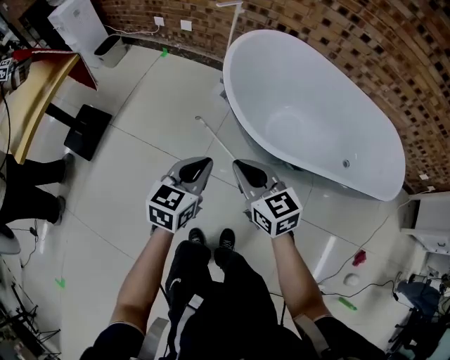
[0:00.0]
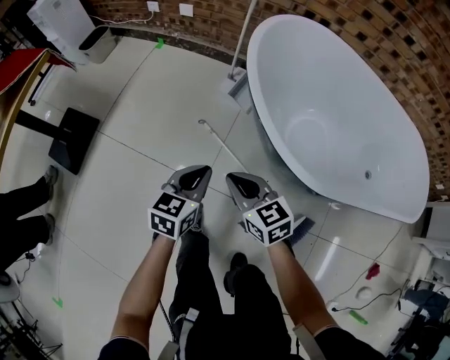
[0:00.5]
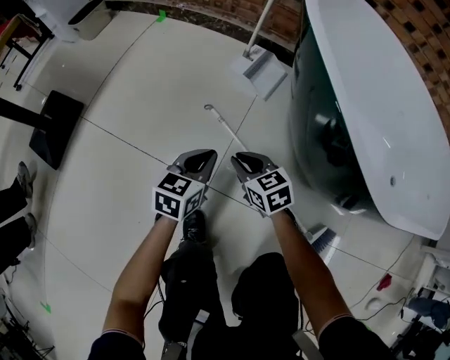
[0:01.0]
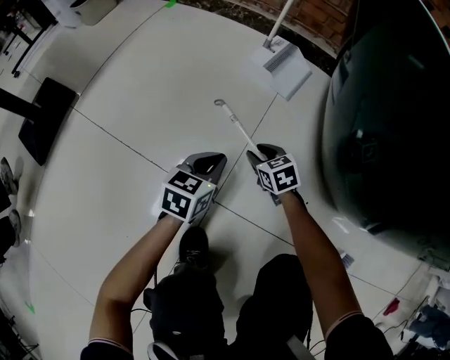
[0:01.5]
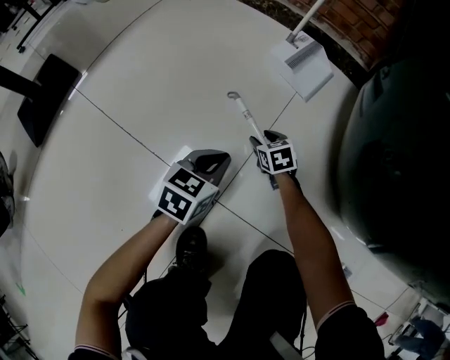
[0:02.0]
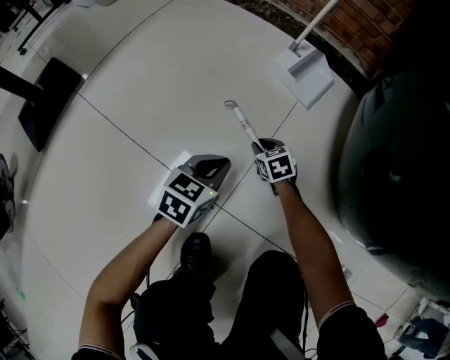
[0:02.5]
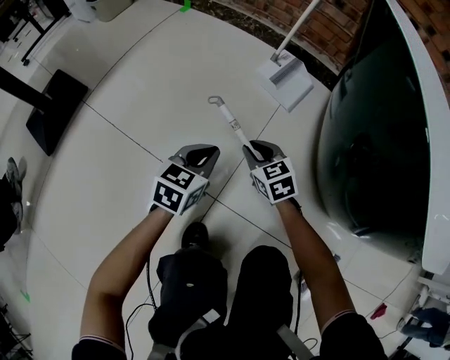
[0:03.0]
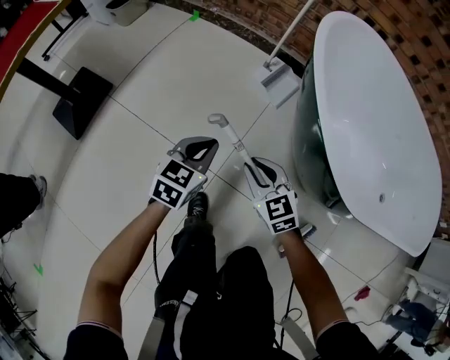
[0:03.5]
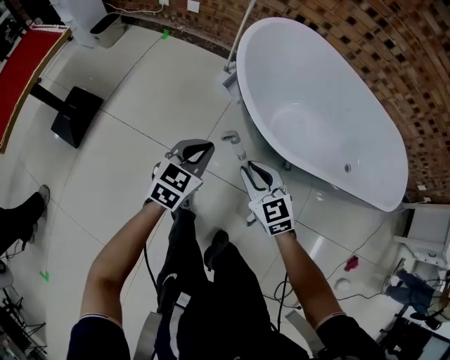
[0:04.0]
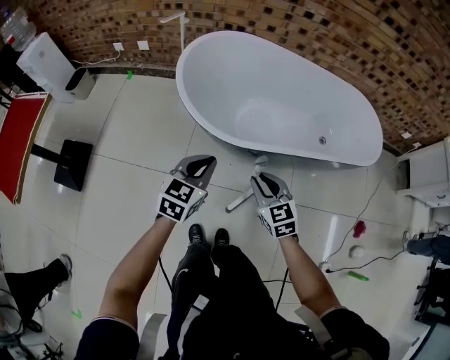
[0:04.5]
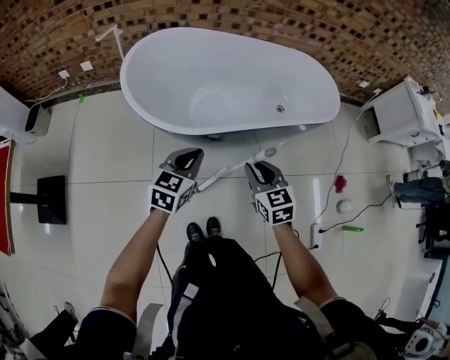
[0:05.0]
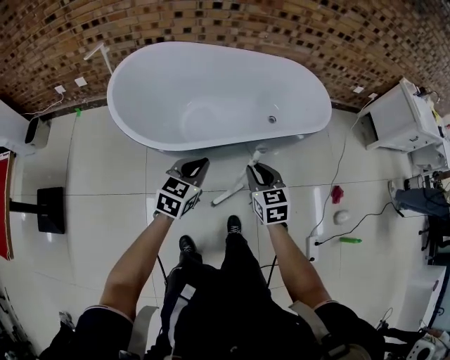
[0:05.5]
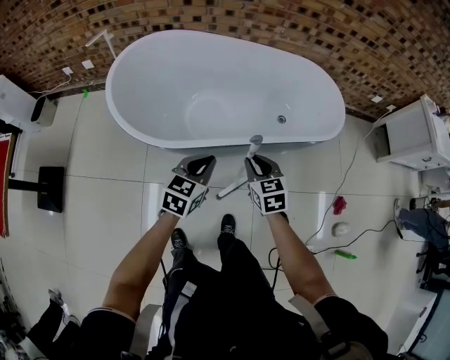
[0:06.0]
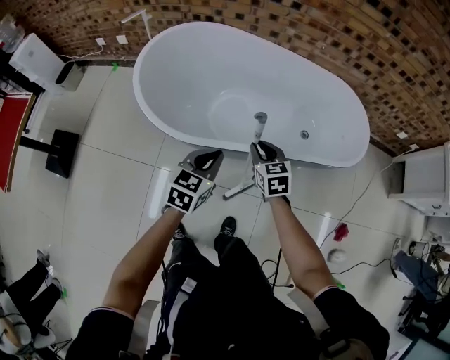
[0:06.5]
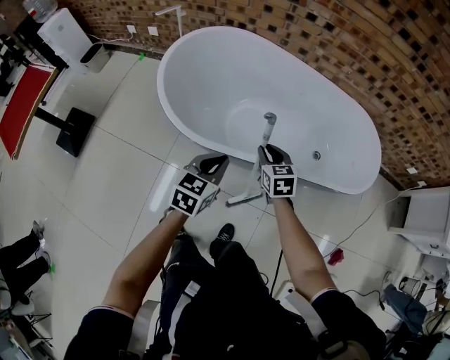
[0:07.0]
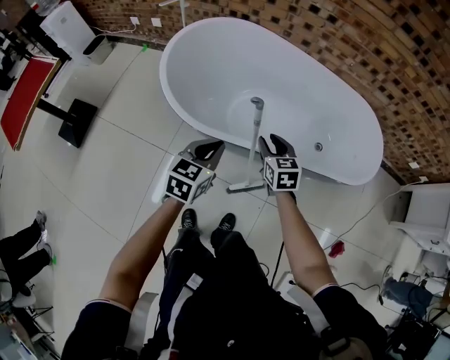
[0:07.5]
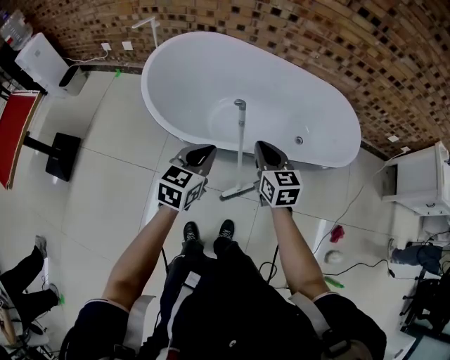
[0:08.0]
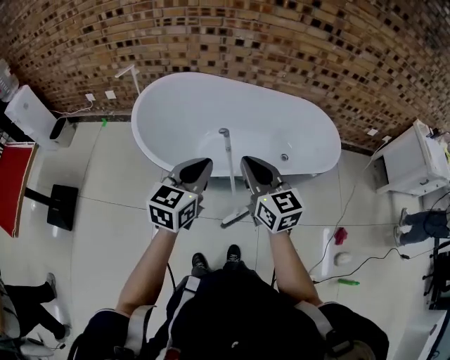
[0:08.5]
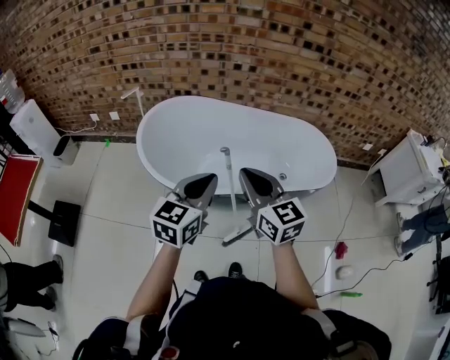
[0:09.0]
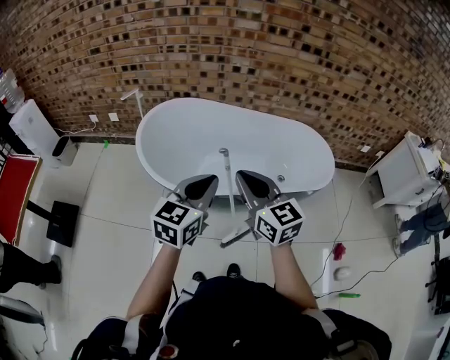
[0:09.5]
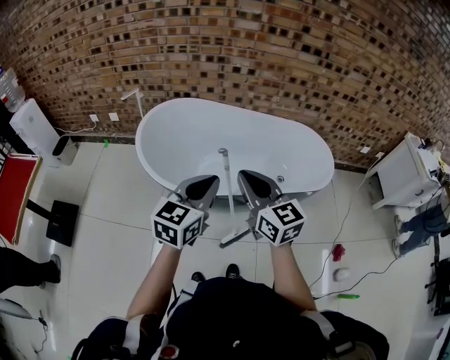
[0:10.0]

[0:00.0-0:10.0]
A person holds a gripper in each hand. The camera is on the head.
0:00.0 to 0:02.0: The left gripper moves downward, some 60 cm, while the right gripper moves downward and forward, approximately 80 cm, tips its fingers downward by some 30 degrees, and opens its fingers.
0:02.0 to 0:04.0: The left gripper heads upward, covering some 50 cm. The right gripper moves upward and backward, approximately 70 cm, swivels some 30 degrees, and closes its fingers.
0:04.0 to 0:06.0: The left gripper shifts by approximately 40 cm. The right gripper moves roughly 40 cm, and swivels roughly 40 degrees.
0:06.0 to 0:08.0: The grippers both shift upward and to the left by roughly 10 cm.
0:08.0 to 0:10.0: The grippers both shift upward by approximately 20 cm.

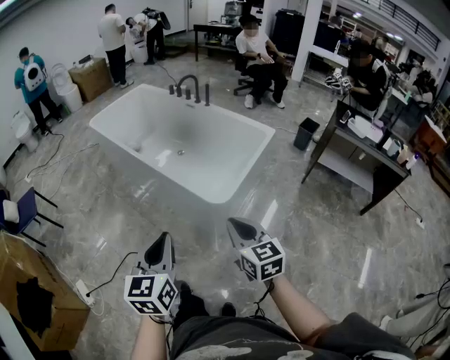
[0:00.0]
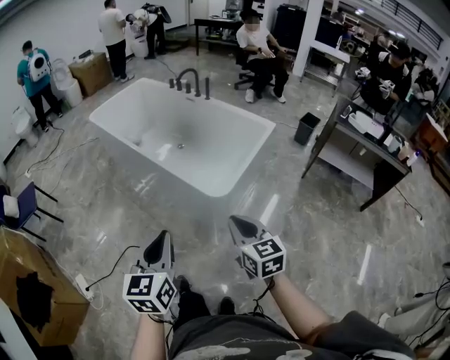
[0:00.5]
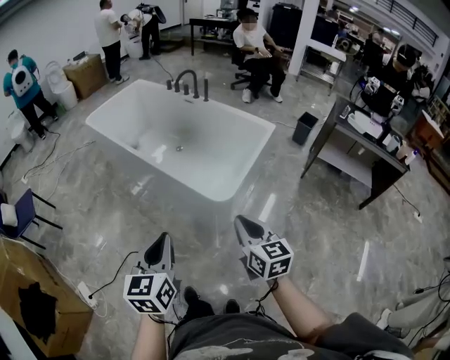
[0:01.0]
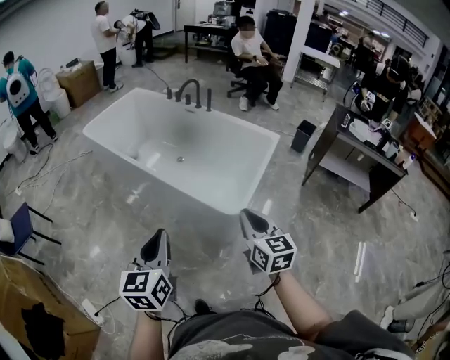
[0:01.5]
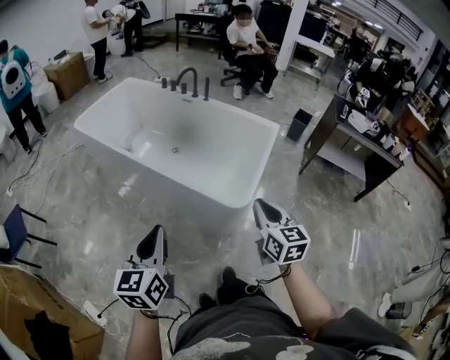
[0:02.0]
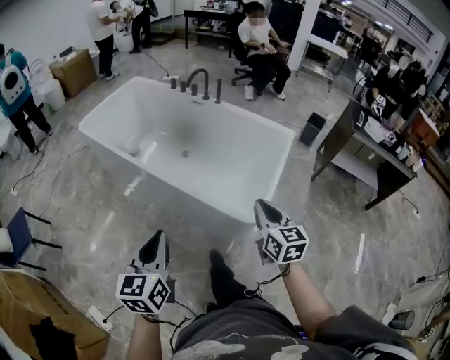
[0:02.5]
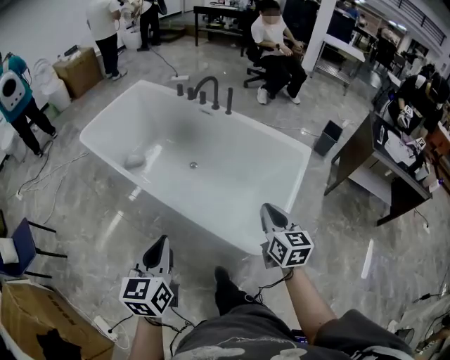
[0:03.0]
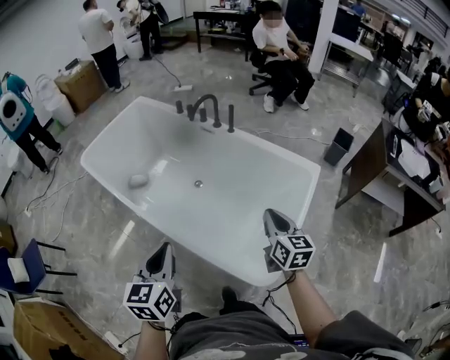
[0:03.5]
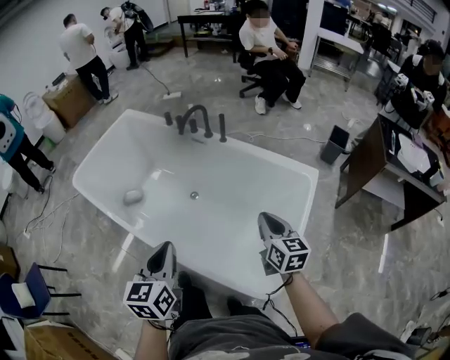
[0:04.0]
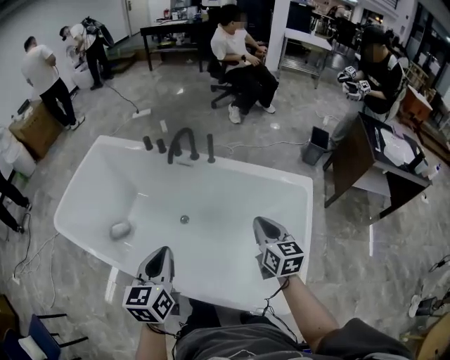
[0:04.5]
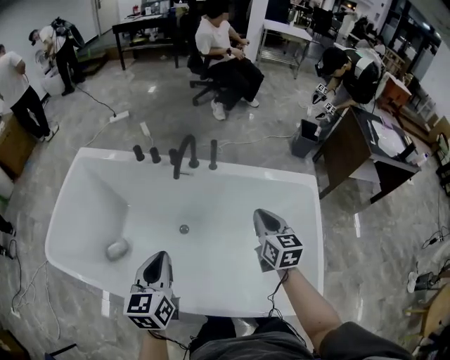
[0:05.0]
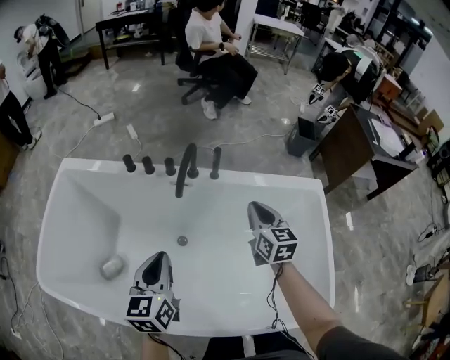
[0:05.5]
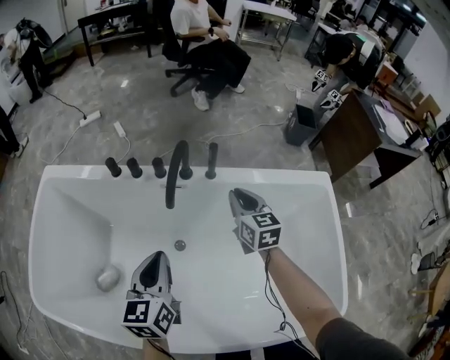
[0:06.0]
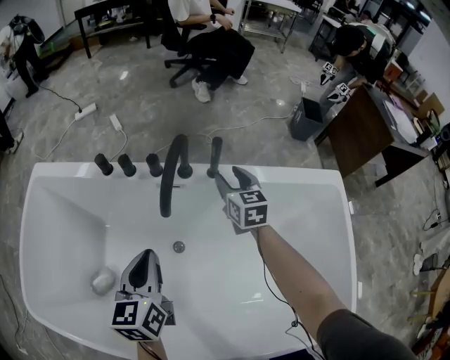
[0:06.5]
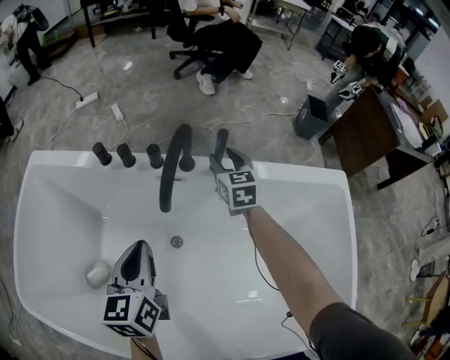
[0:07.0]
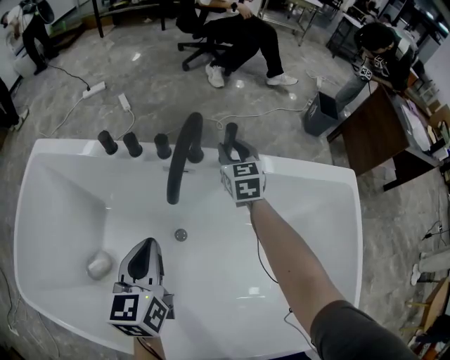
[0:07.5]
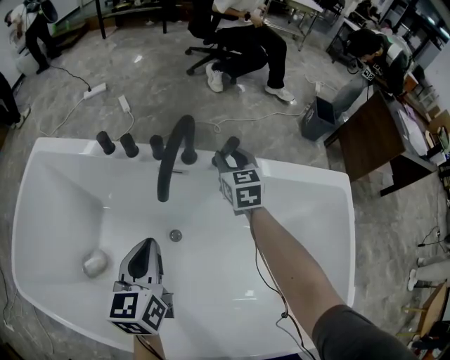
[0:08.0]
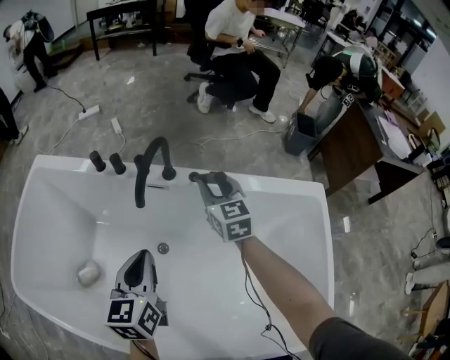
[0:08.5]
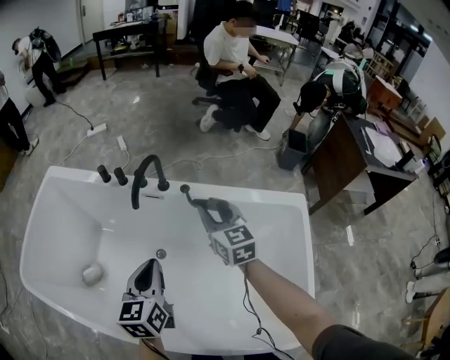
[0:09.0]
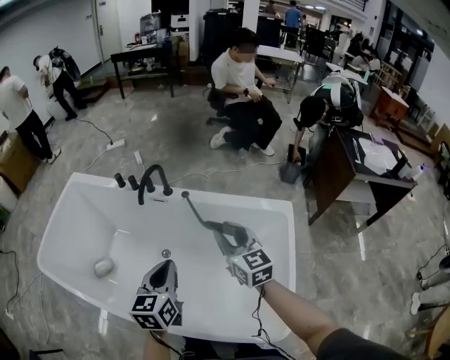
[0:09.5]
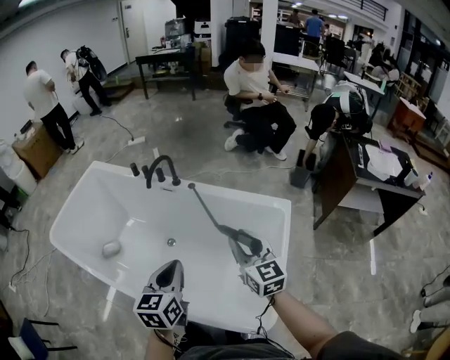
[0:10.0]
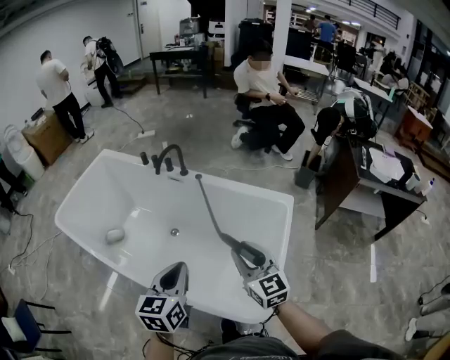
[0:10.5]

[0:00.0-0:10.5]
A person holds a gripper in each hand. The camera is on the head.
0:00.0 to 0:02.0: The left gripper is displaced to the left and forward by about 20 cm. The right gripper shifts about 15 cm forward and to the left.
0:02.0 to 0:04.0: The pair of grippers is taken forward, approximately 40 cm.
0:04.0 to 0:06.5: The two grippers travel together, forward and to the left, approximately 50 cm. The grippers both shift downward by some 20 cm. The right gripper changes its angle by about 20 degrees, and opens its fingers, while the left gripper changes its angle by approximately 20 degrees.
0:06.5 to 0:08.5: The left gripper heads to the right, covering about 5 cm; the right gripper moves upward and backward, some 10 cm.
0:08.5 to 0:10.5: Both grippers are carried backward and to the right, some 50 cm. The grippers both shift upward by roughly 20 cm. The right gripper rotates approximately 20 degrees.

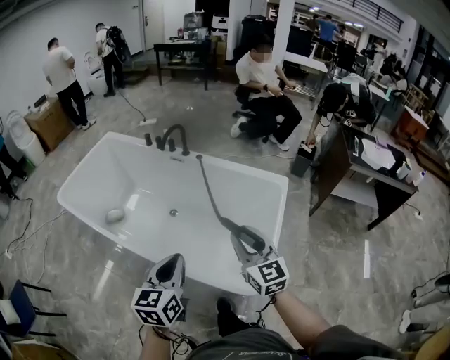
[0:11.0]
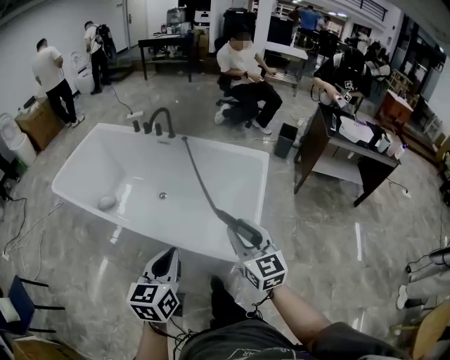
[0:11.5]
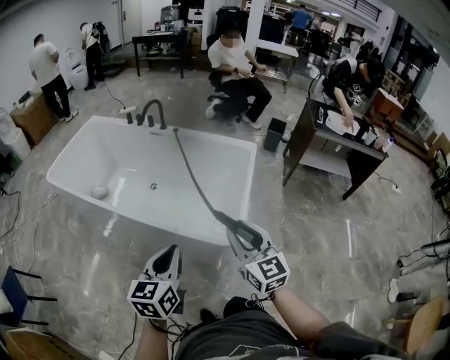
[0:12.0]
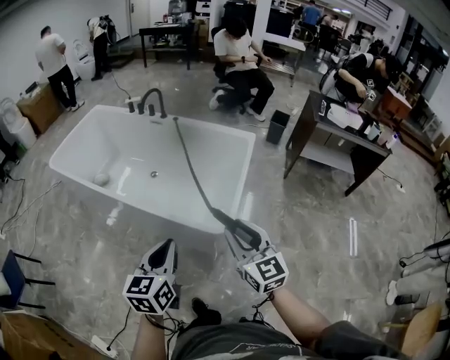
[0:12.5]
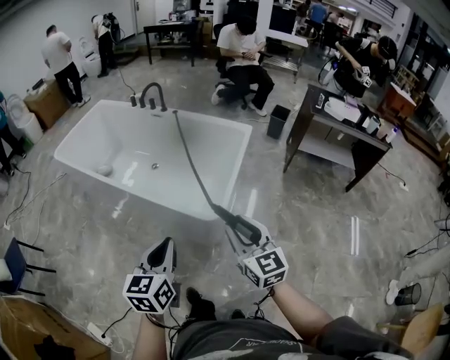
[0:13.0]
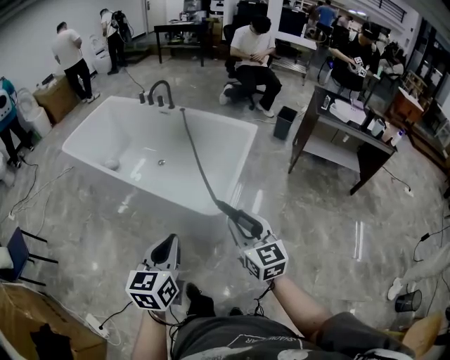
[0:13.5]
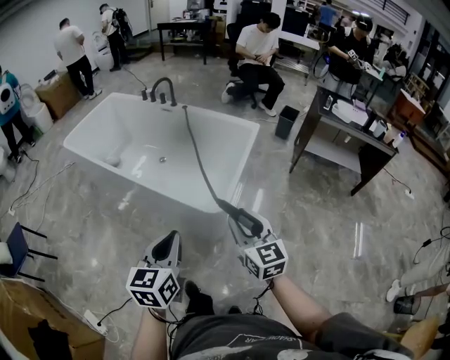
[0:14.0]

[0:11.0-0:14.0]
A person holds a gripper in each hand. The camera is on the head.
0:11.0 to 0:12.5: Both grippers travel together backward, approximately 25 cm.
0:12.5 to 0:14.0: The grippers both shift backward and to the right by roughly 10 cm.

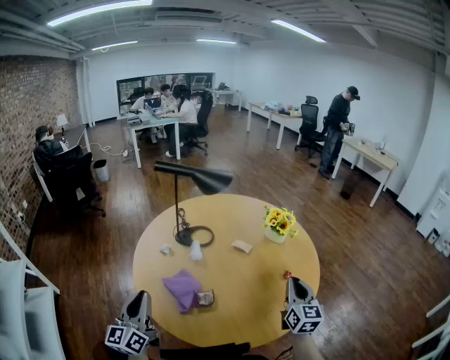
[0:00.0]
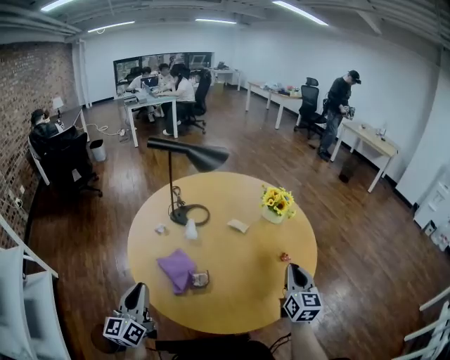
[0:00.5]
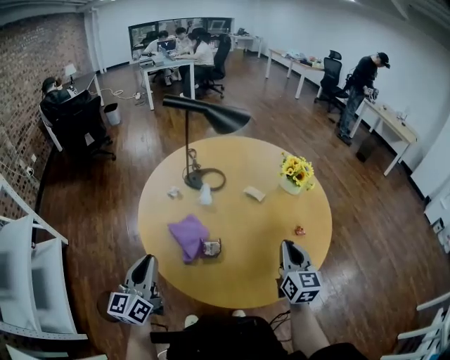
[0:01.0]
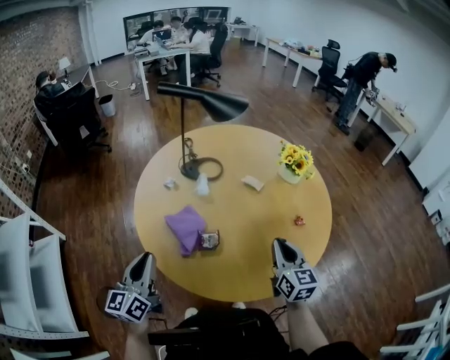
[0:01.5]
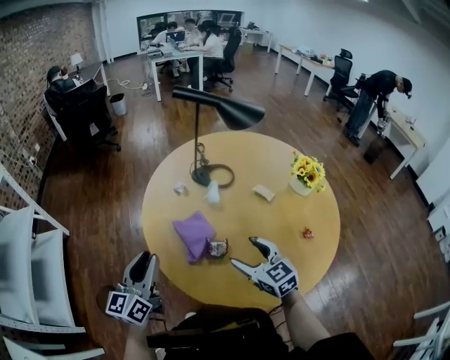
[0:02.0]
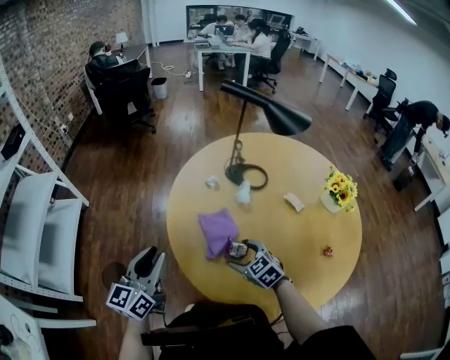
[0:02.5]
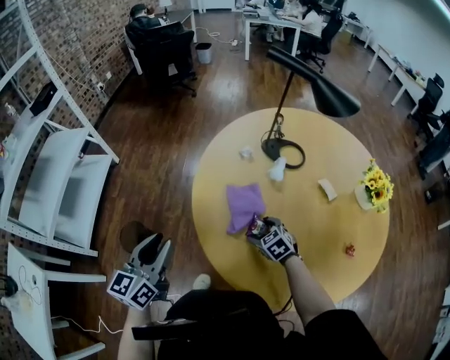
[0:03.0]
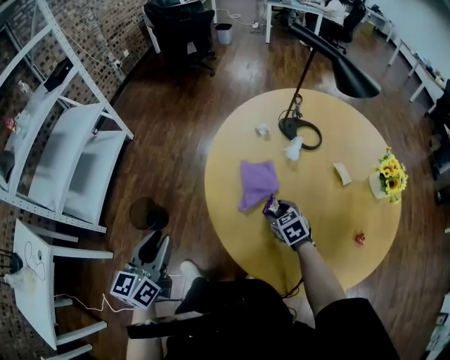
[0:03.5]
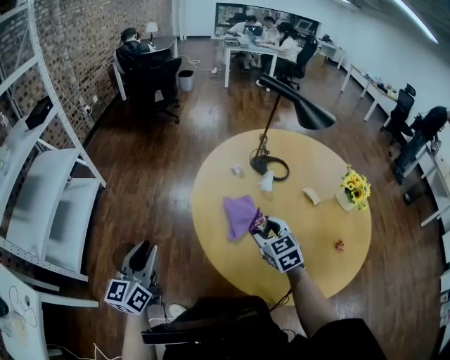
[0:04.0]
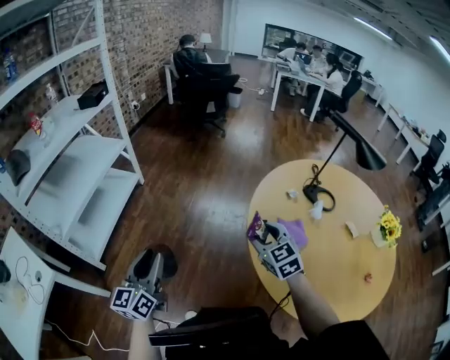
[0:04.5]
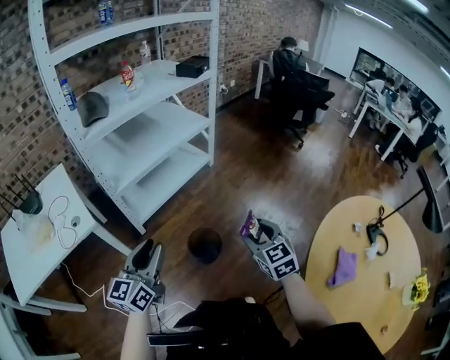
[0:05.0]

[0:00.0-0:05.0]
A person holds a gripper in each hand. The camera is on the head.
0:00.0 to 0:02.5: The right gripper ends up roughly 35 cm from where it was, tilts its fingers about 40 degrees downward, and opens up. The left gripper ends up approximately 5 cm from where it was.
0:02.5 to 0:05.0: The two grippers travel together, some 50 cm. The left gripper rotates approximately 50 degrees, while the right gripper swivels approximately 40 degrees, and closes.
